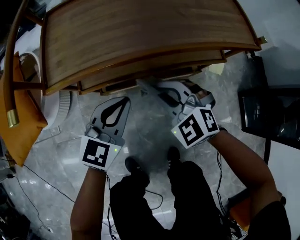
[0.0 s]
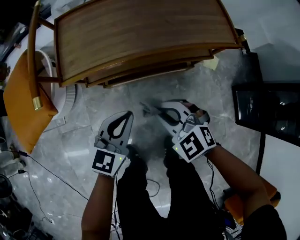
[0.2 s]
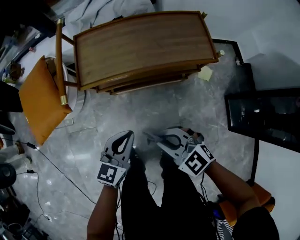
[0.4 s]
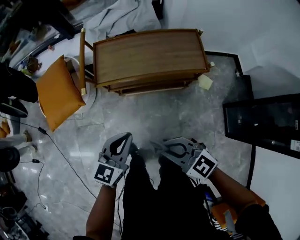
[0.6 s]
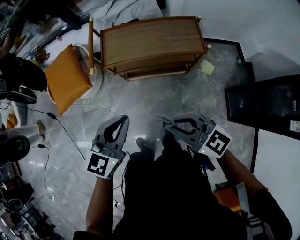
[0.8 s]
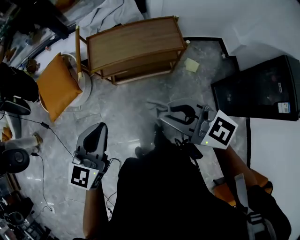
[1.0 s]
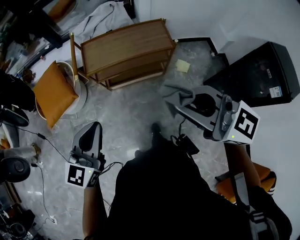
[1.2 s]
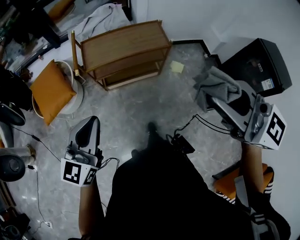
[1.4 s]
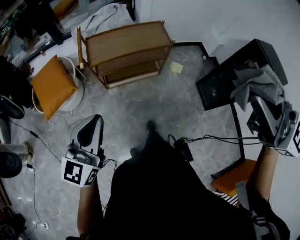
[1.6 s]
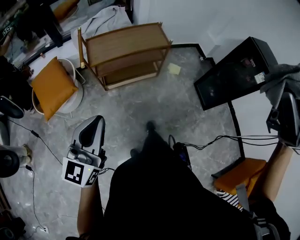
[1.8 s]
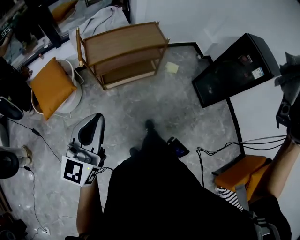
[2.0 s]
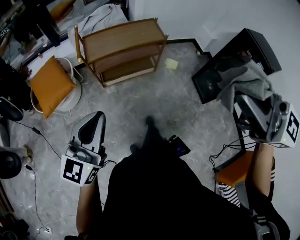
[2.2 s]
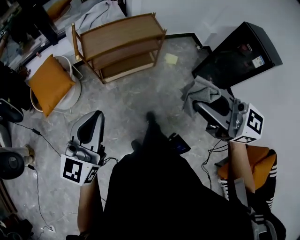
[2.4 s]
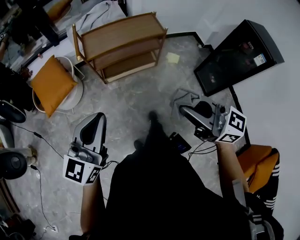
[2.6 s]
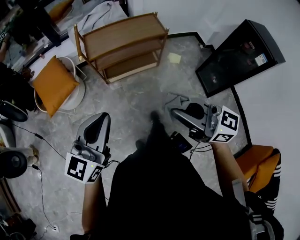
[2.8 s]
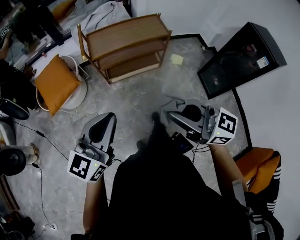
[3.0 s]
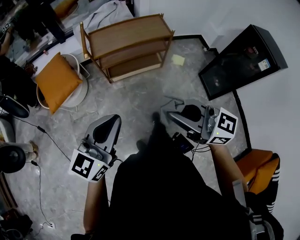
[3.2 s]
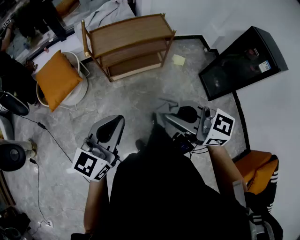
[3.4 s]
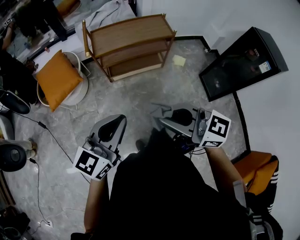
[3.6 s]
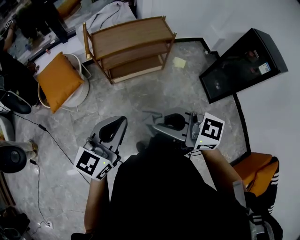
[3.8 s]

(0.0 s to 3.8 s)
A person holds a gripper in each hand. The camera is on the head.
0.0 s - 1.2 s: Both grippers travel together upward and backward, roughly 60 cm. The right gripper angles its fingers upward, by about 30 degrees.
1.2 s - 2.6 s: The right gripper moves backward, some 20 cm, and reaches approximately 20 cm upward, then returns; the left gripper goes roughly 15 cm backward and to the left.
2.6 s - 3.8 s: The right gripper goes roughly 10 cm to the left.

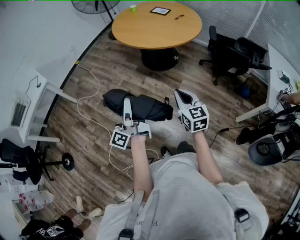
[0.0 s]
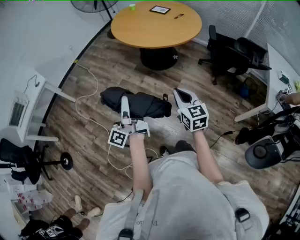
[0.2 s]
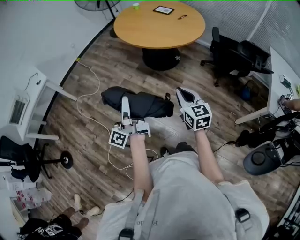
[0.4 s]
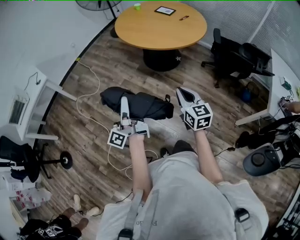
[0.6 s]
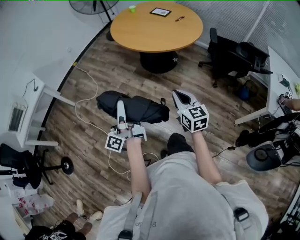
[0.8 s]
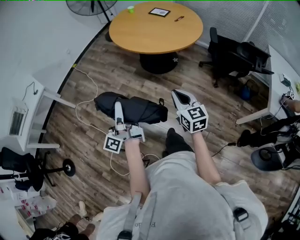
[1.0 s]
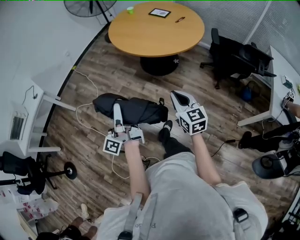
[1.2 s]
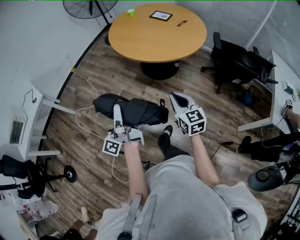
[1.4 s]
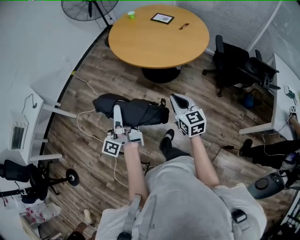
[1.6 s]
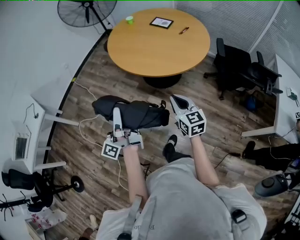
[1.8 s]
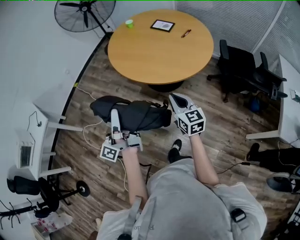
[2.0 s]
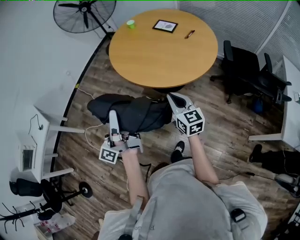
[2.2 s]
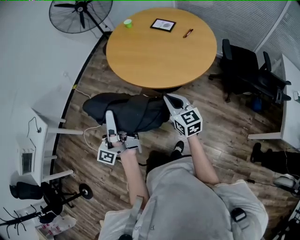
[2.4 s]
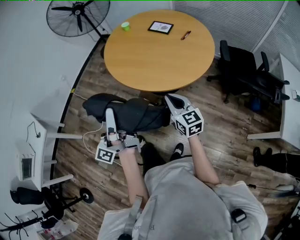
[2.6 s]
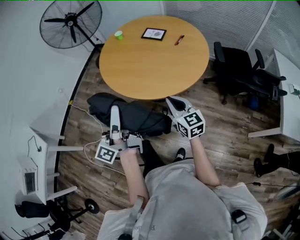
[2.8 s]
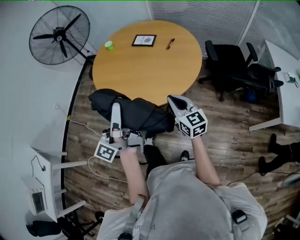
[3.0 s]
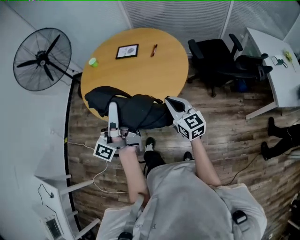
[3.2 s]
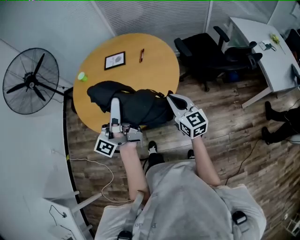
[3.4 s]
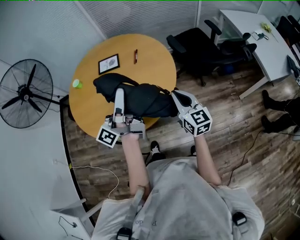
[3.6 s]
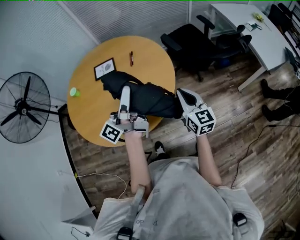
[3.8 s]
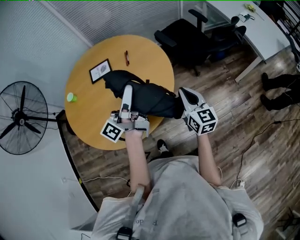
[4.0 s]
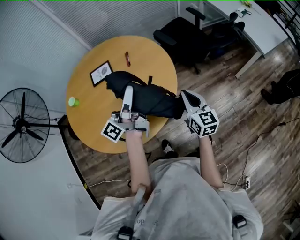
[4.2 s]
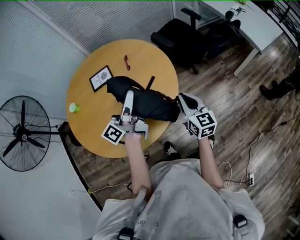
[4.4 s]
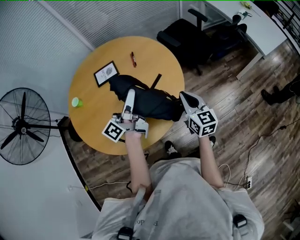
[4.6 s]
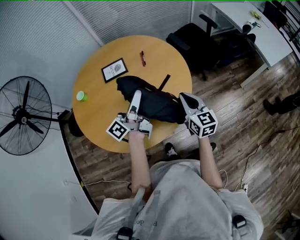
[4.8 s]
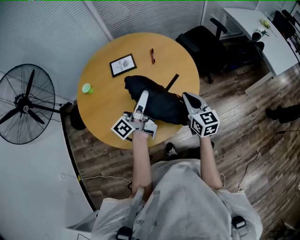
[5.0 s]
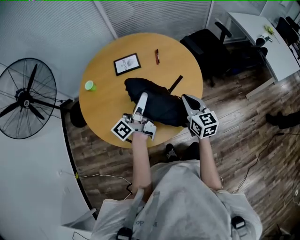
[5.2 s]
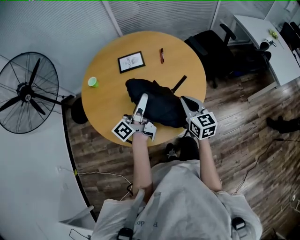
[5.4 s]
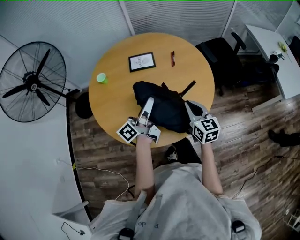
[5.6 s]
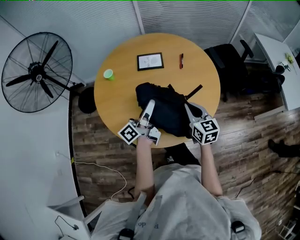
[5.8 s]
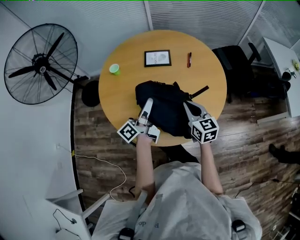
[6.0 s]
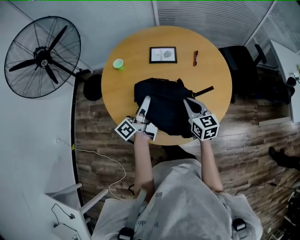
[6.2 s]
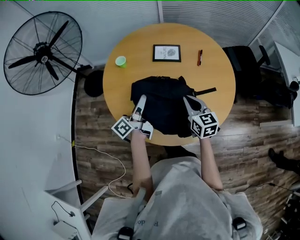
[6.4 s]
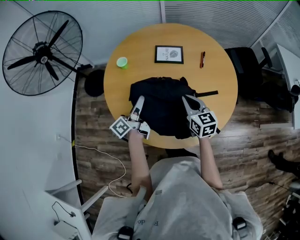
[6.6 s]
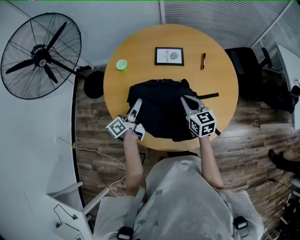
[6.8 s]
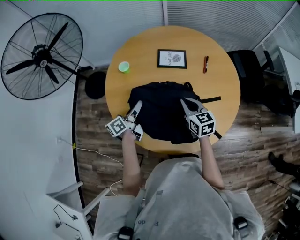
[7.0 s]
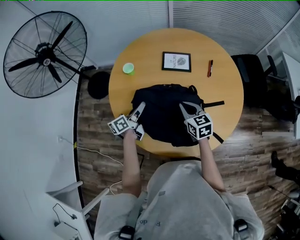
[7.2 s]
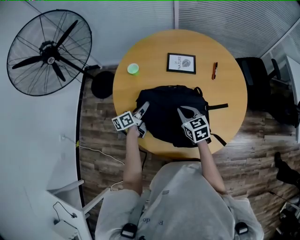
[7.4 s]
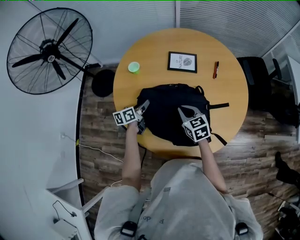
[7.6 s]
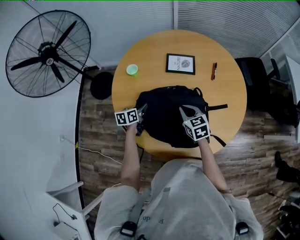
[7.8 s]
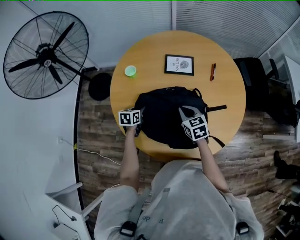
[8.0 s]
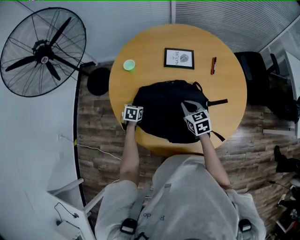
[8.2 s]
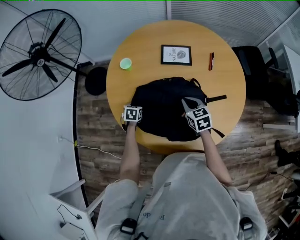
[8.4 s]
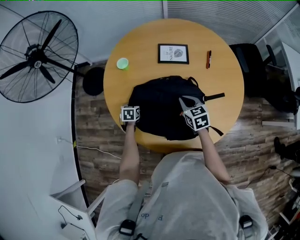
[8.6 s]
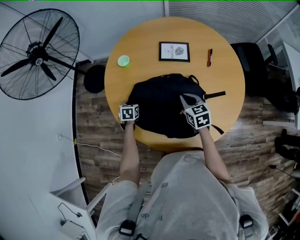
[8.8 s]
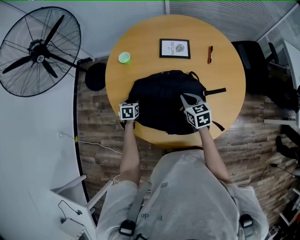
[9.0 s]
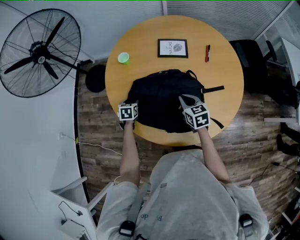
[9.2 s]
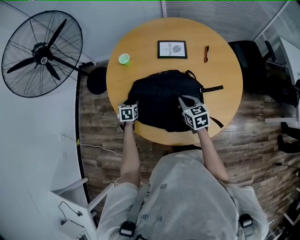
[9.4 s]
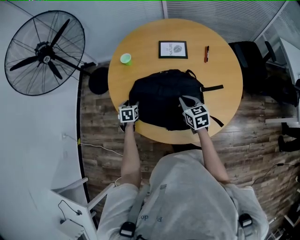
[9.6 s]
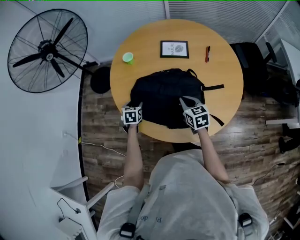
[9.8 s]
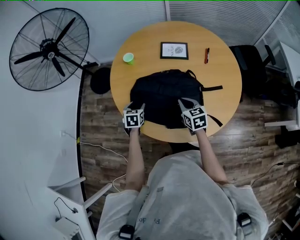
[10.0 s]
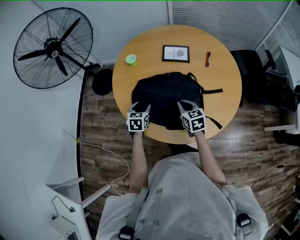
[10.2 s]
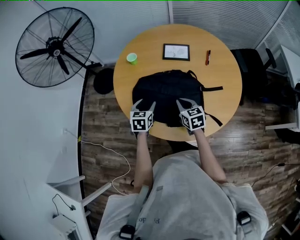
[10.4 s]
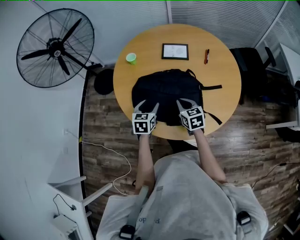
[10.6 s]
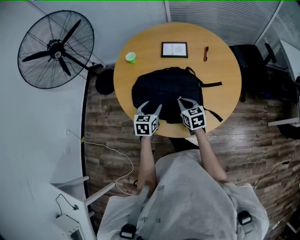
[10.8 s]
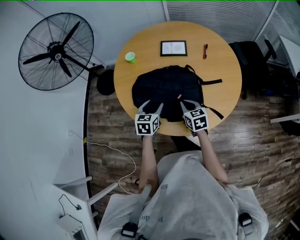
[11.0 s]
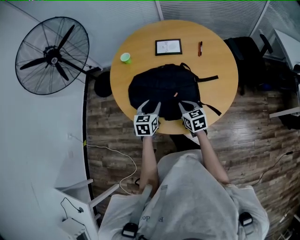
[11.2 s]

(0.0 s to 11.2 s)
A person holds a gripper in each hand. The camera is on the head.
0.0 s - 1.6 s: The two grippers go some 25 cm forward.
1.6 s - 3.2 s: The right gripper ends up about 30 cm from where it was, and turns by some 20 degrees. The left gripper shifts by roughly 40 cm, and turns by roughly 40 degrees.
3.2 s - 4.8 s: The left gripper changes place by approximately 25 cm, and changes its angle by approximately 40 degrees. The right gripper ends up approximately 15 cm from where it was, and swivels approximately 30 degrees.
4.8 s - 6.4 s: The right gripper moves roughly 25 cm, and turns by some 20 degrees. Meanwhile the left gripper ends up about 30 cm from where it was, and swivels roughly 30 degrees.
6.4 s - 8.0 s: The right gripper moves downward, to the left and forward, about 15 cm. Meanwhile the left gripper goes approximately 25 cm downward and to the left, and points its fingers roughly 60 degrees further downward.
8.0 s - 9.6 s: The two grippers go some 5 cm backward. The left gripper changes its angle by roughly 20 degrees, and opens.
9.6 s - 11.2 s: The right gripper moves backward, roughly 10 cm; the left gripper moves to the right, upward and backward, about 25 cm, and swivels some 20 degrees.

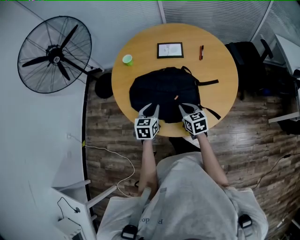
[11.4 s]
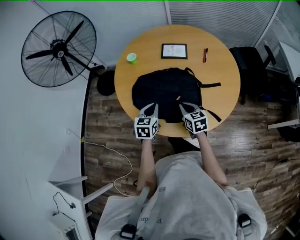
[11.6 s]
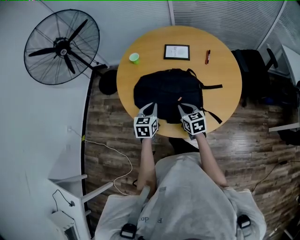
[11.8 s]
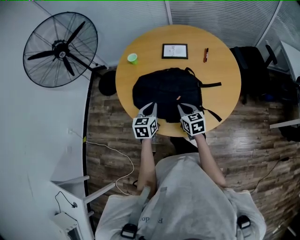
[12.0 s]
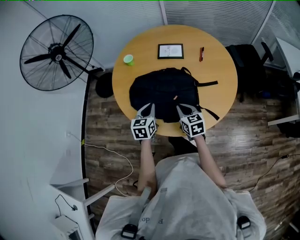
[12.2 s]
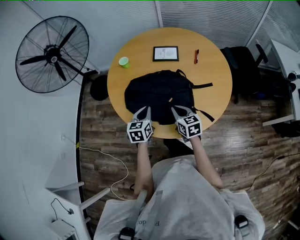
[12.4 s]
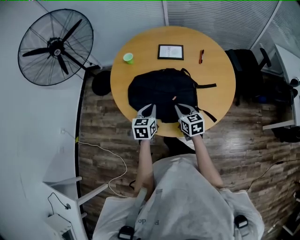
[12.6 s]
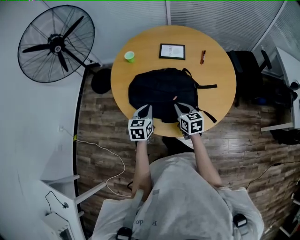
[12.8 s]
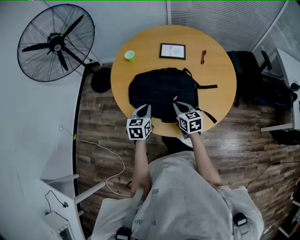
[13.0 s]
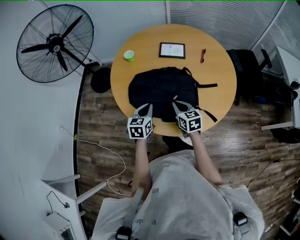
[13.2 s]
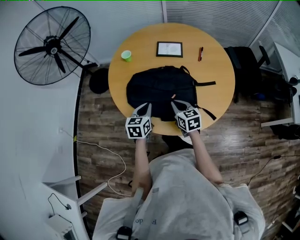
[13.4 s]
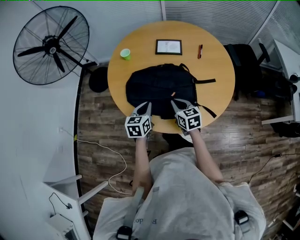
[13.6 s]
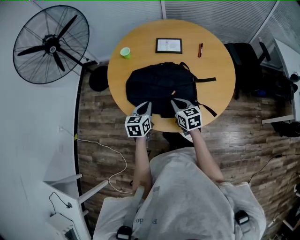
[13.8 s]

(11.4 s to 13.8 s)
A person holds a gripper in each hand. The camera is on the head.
11.4 s - 12.6 s: The left gripper closes.
12.6 s - 13.8 s: The grippers make only small movements.

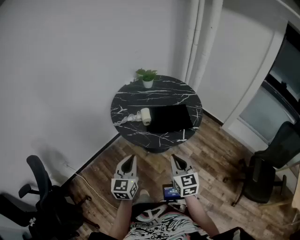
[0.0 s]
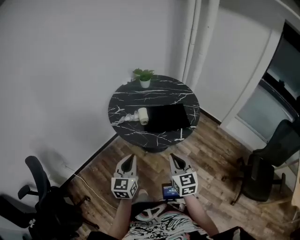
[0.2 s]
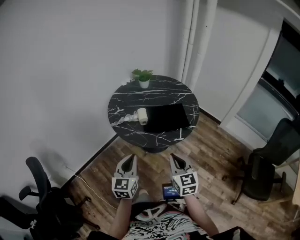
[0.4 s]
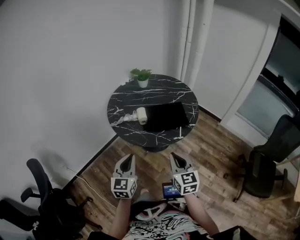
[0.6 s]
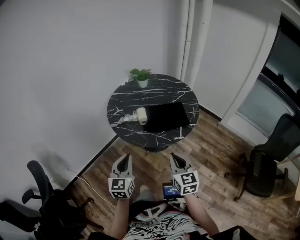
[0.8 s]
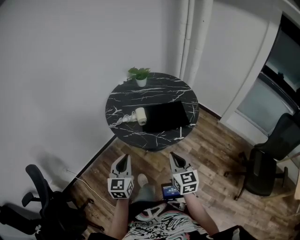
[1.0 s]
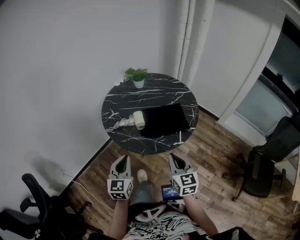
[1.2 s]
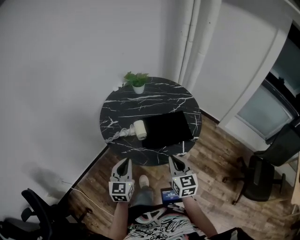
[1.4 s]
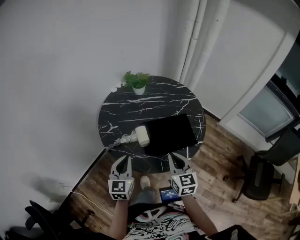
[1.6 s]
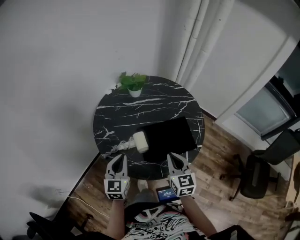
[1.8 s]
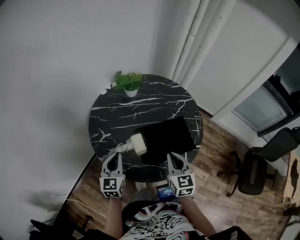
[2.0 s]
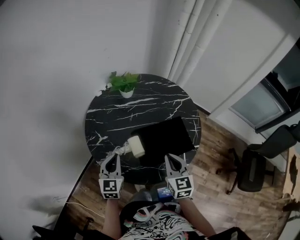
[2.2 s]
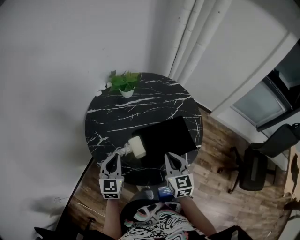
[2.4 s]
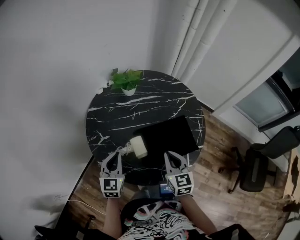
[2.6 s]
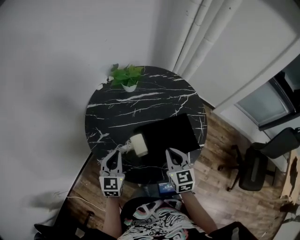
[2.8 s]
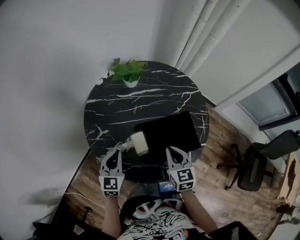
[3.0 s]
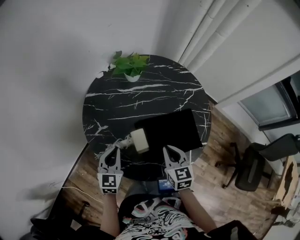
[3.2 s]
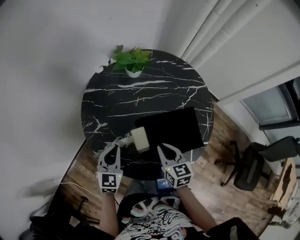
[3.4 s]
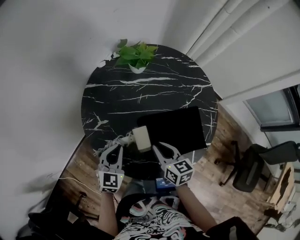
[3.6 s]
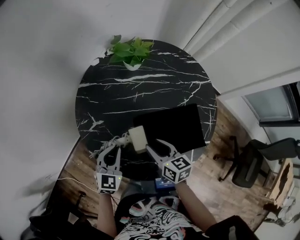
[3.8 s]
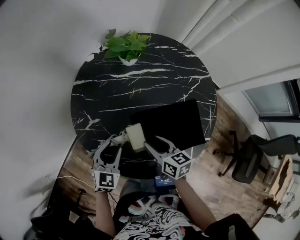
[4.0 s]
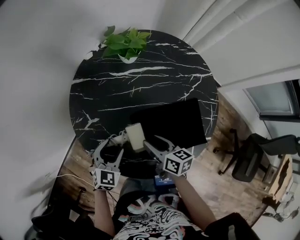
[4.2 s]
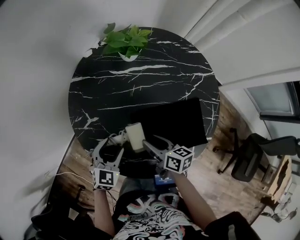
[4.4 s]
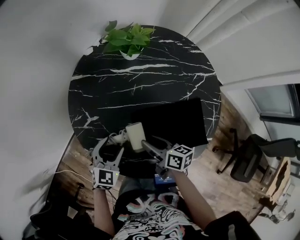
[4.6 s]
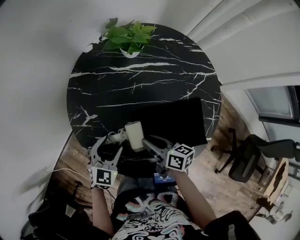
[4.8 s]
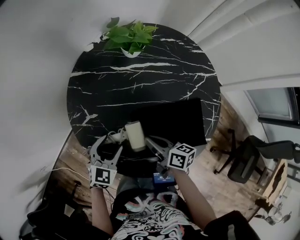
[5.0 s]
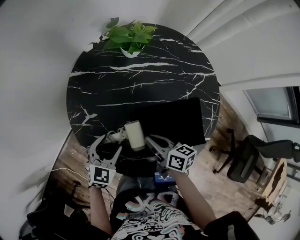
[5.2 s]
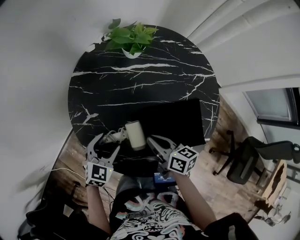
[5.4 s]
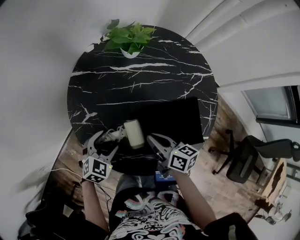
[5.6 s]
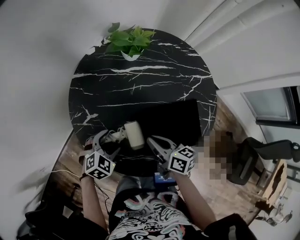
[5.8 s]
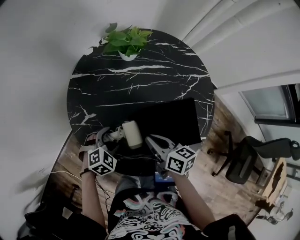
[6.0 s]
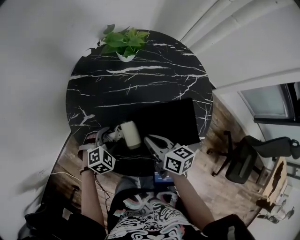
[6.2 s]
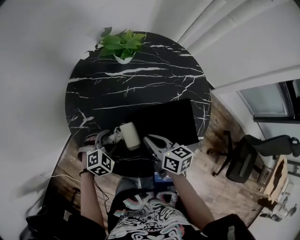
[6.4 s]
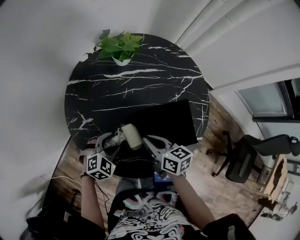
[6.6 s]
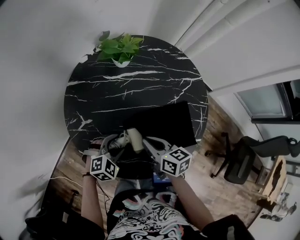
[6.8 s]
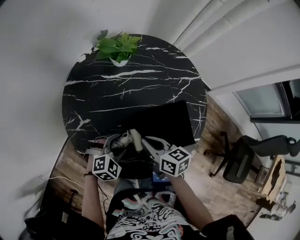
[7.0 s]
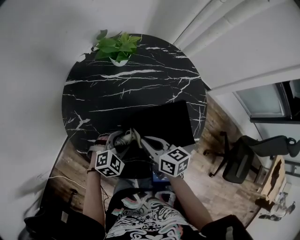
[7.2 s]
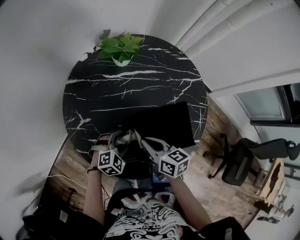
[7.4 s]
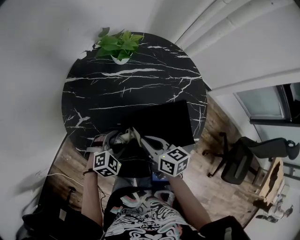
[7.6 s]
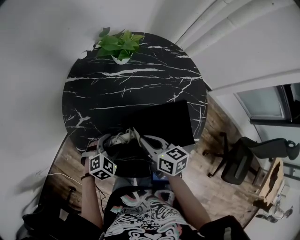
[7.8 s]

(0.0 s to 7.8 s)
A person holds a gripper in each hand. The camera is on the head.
0.0 s - 1.6 s: Both grippers move forward, roughly 20 cm.
1.6 s - 3.2 s: Both grippers move forward and downward, approximately 15 cm.
3.2 s - 4.6 s: The left gripper shifts about 10 cm downward, and opens its fingers, while the right gripper goes roughly 10 cm downward and to the left, rotates some 50 degrees, and opens.
4.6 s - 6.2 s: The right gripper closes up; the left gripper turns by some 30 degrees.
